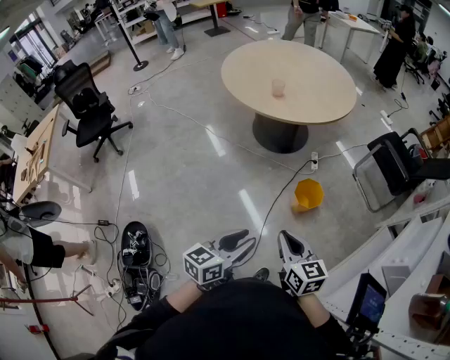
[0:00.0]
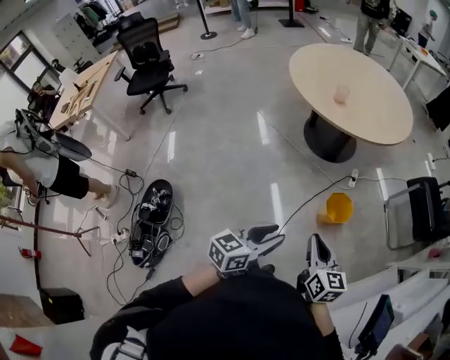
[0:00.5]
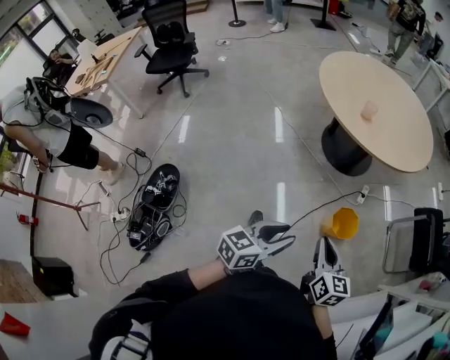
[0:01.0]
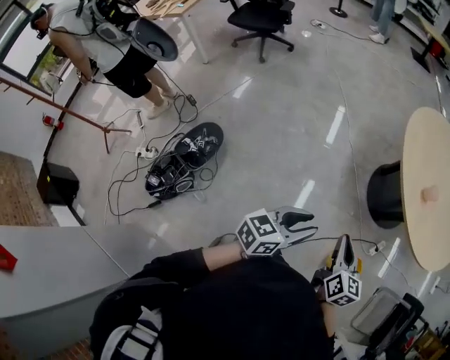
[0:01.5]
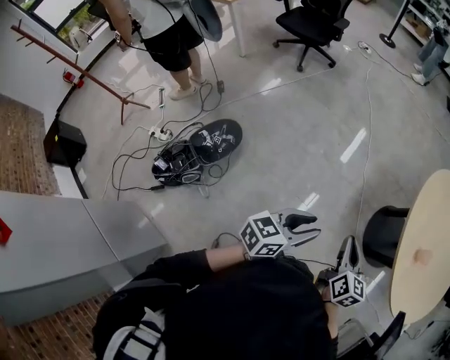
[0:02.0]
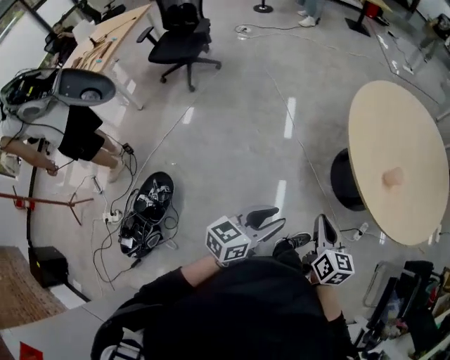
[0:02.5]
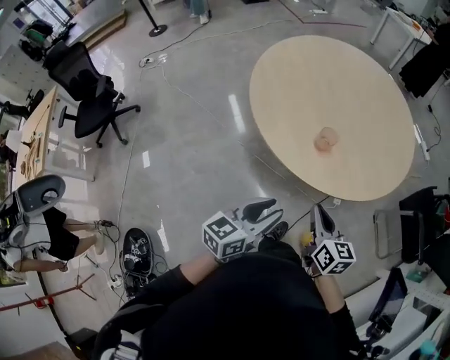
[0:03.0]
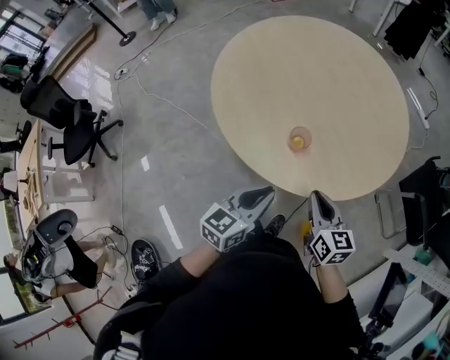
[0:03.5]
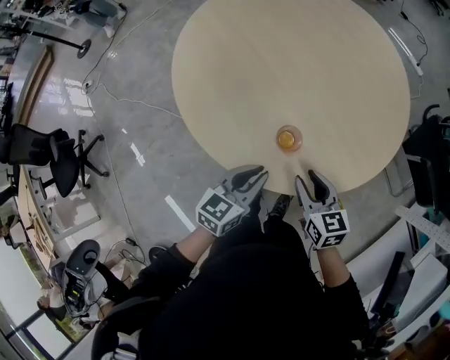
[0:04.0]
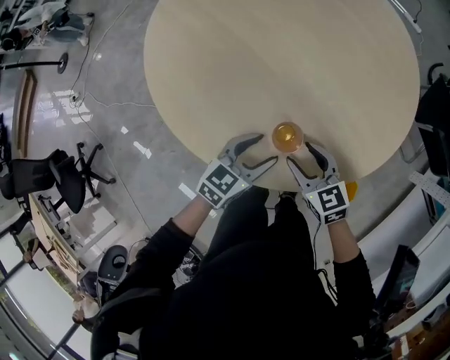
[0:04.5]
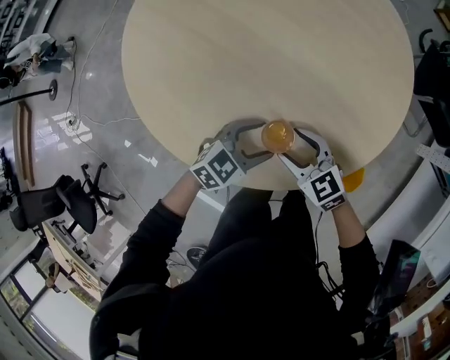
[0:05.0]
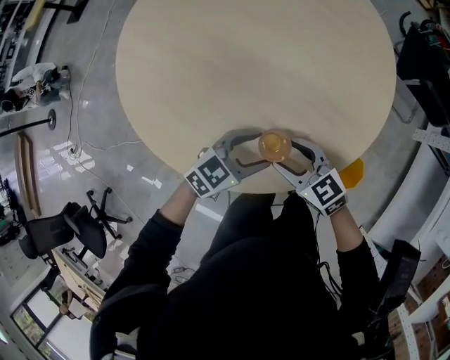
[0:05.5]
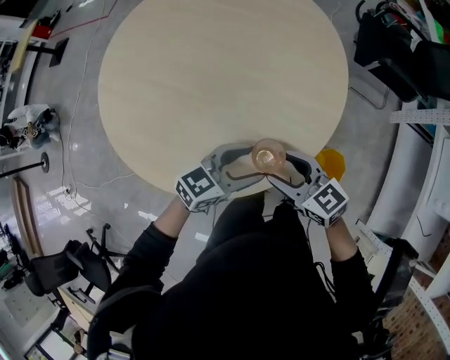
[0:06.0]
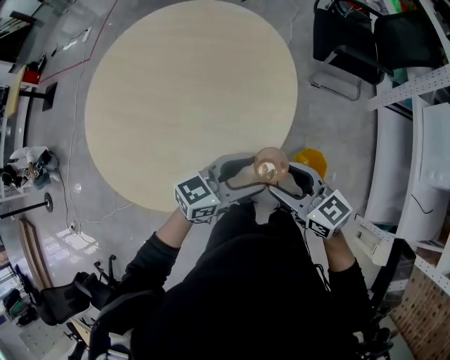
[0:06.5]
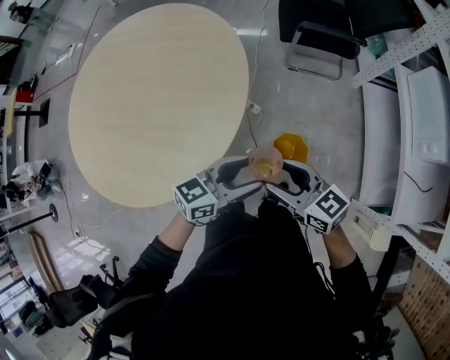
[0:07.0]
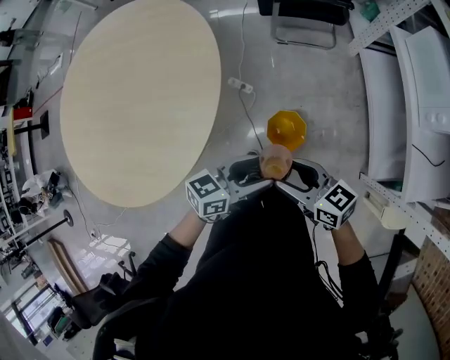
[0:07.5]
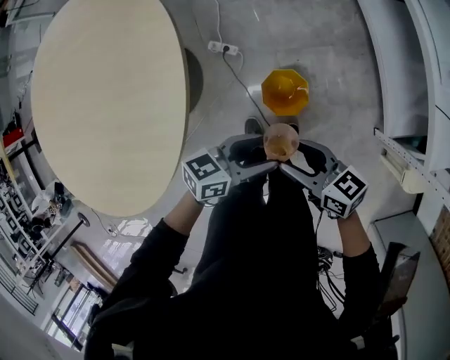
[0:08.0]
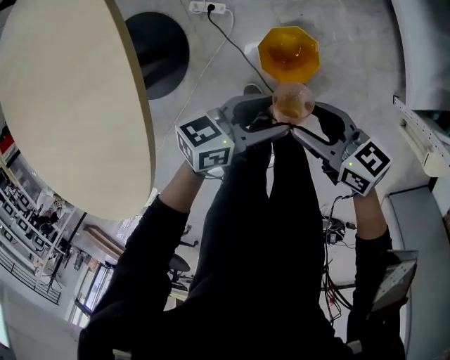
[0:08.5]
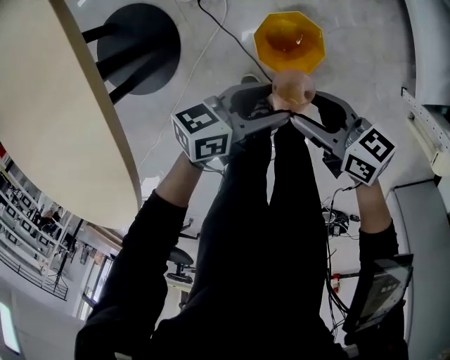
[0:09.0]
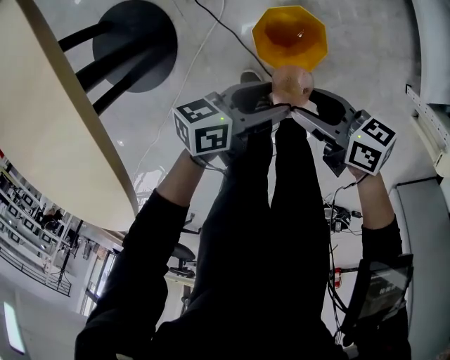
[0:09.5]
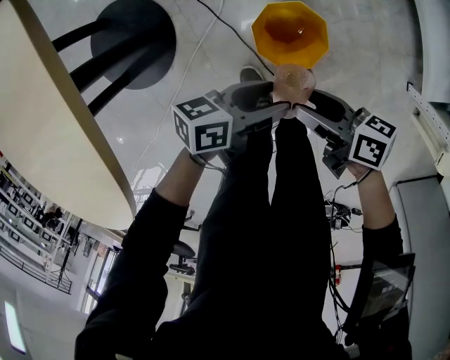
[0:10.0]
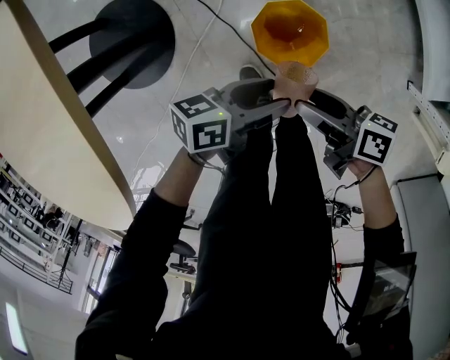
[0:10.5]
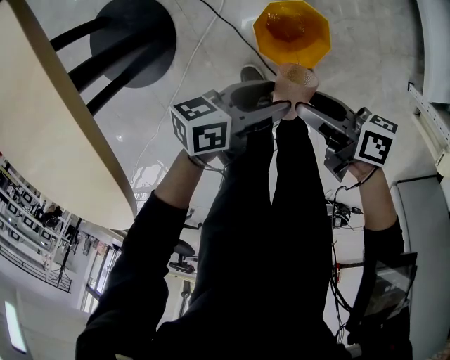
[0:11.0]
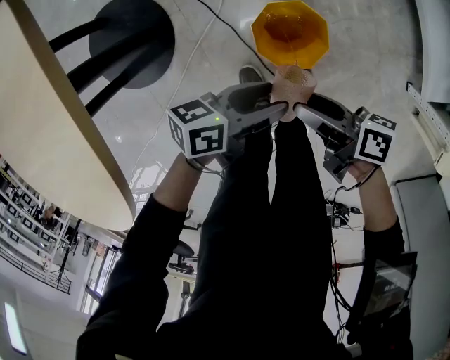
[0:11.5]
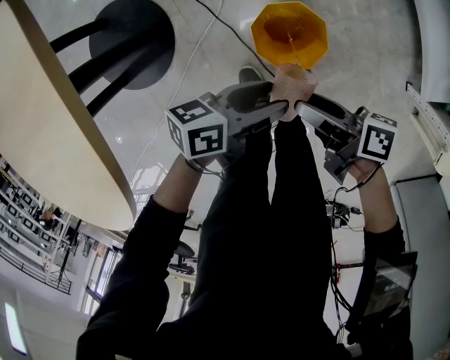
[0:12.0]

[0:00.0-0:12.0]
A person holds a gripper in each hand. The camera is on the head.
0:00.0 to 0:02.0: The two grippers travel together, about 40 cm. The left gripper rotates roughly 40 degrees. Meanwhile the right gripper turns by some 30 degrees.
0:02.0 to 0:04.0: The two grippers travel together, about 70 cm. The left gripper swivels about 60 degrees, and closes, while the right gripper rotates roughly 40 degrees, and opens.
0:04.0 to 0:06.0: The right gripper goes downward and returns, roughly 10 cm each way, and opens its fingers. Meanwhile the left gripper moves some 10 cm downward and comes back, rotates about 50 degrees, and opens up.
0:06.0 to 0:08.0: Both grippers are carried approximately 40 cm. The right gripper changes its angle by some 40 degrees; the left gripper turns by about 30 degrees.
0:08.0 to 0:10.0: Both grippers travel together downward, some 25 cm. The right gripper rotates about 30 degrees. The left gripper turns by roughly 20 degrees.
0:10.0 to 0:12.0: There are only small adjustments of the grippers.

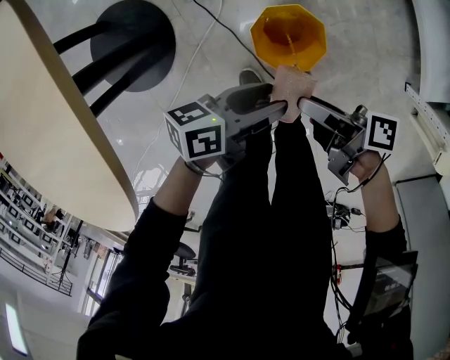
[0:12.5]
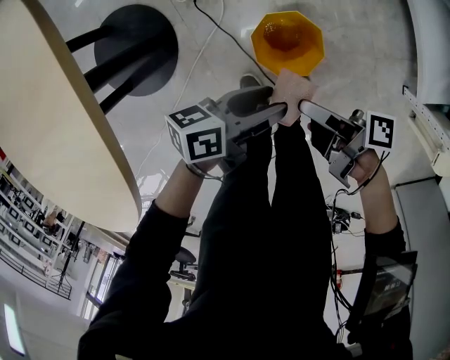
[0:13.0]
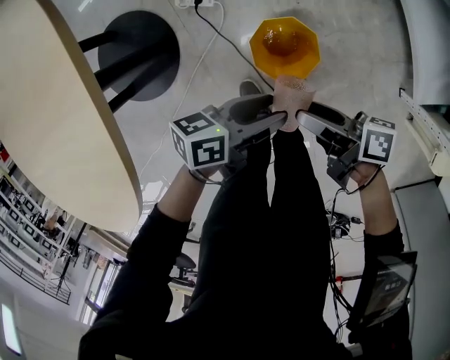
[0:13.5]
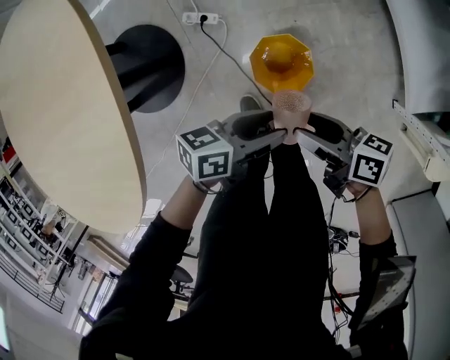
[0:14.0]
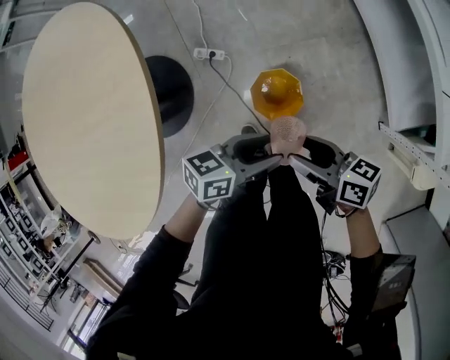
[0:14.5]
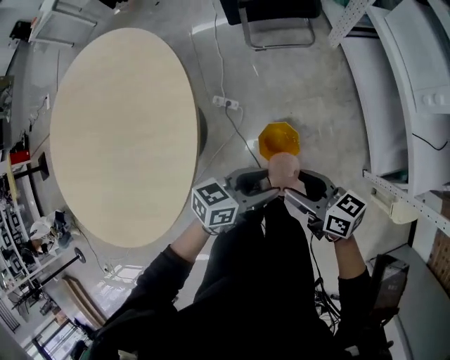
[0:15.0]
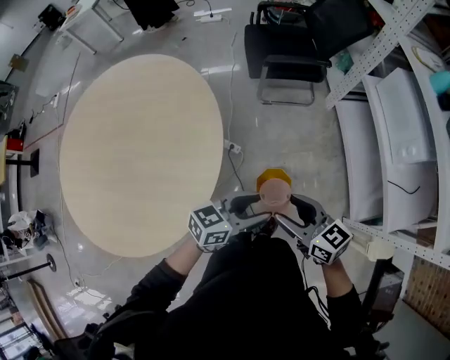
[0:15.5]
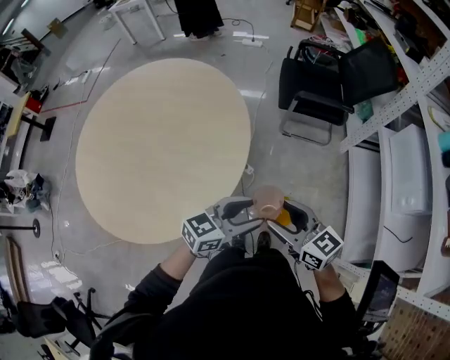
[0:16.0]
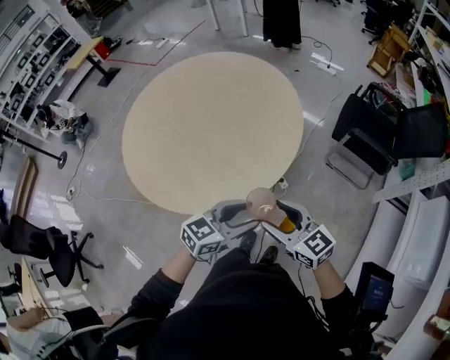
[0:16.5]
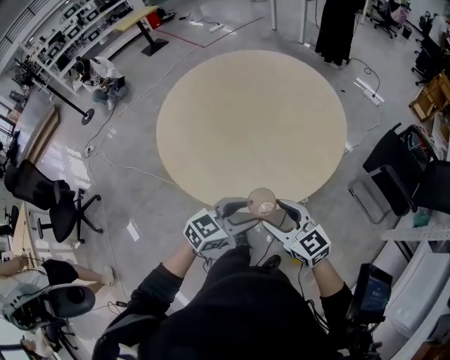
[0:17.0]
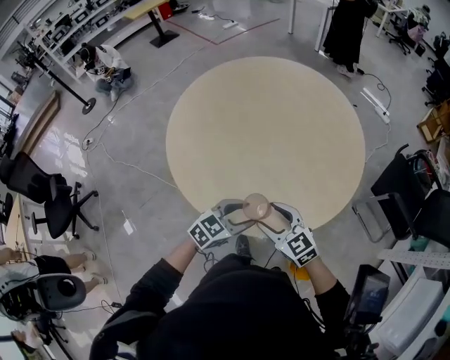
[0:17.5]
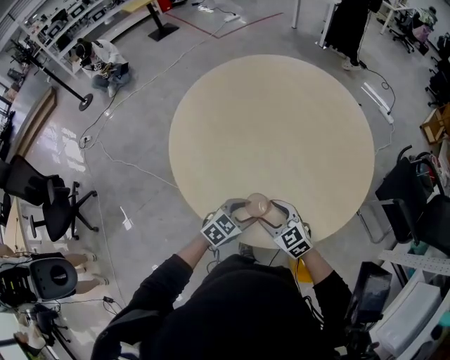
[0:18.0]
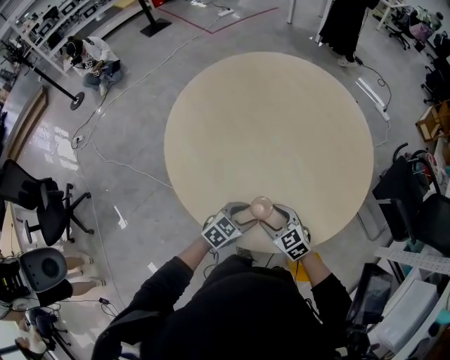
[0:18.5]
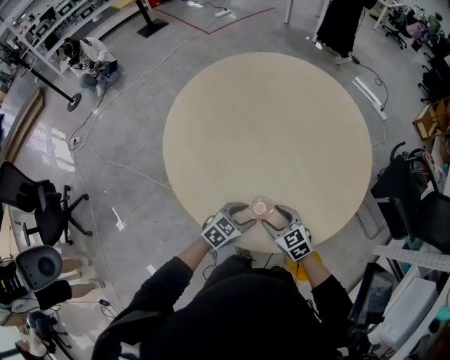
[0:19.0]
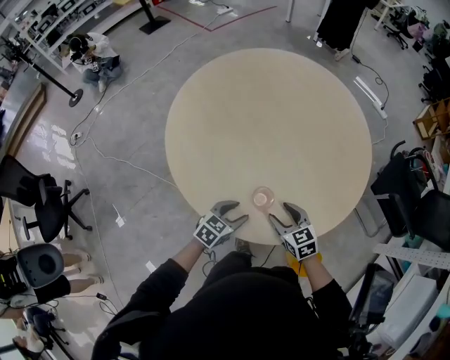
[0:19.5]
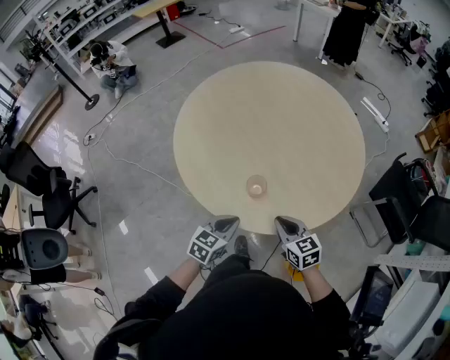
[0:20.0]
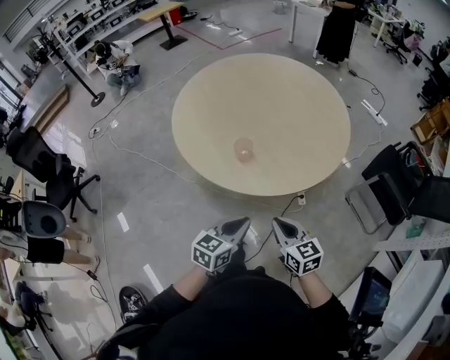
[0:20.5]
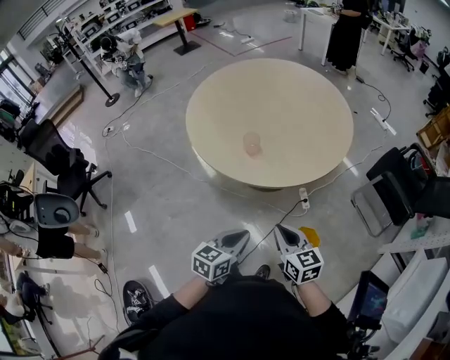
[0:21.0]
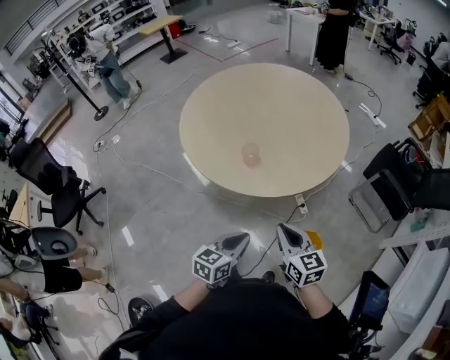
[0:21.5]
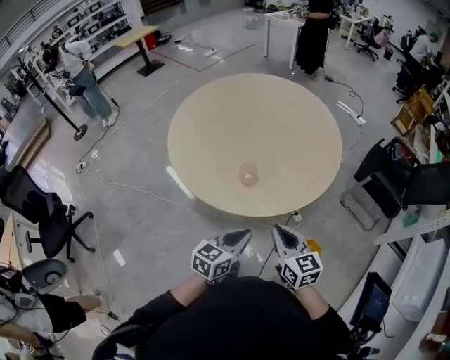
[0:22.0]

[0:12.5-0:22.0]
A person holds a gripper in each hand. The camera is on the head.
0:12.5 to 0:14.5: Both grippers move upward, about 15 cm. The right gripper twists approximately 40 degrees counterclockwise, seen from behind.
0:14.5 to 0:16.5: Both grippers travel together upward, about 35 cm. The left gripper turns by approximately 50 degrees; the right gripper rolls counterclockwise, seen from behind, by some 60 degrees.
0:16.5 to 0:18.0: Both grippers move to the left, forward and downward, some 40 cm. The right gripper swivels roughly 30 degrees; the left gripper rotates some 30 degrees.
0:18.0 to 0:20.0: The right gripper is displaced backward and to the right by about 10 cm, changes its angle by about 20 degrees, and closes. The left gripper shifts about 15 cm backward and upward, rotates approximately 20 degrees, and closes.
0:20.0 to 0:22.0: The grippers both shift backward and upward by about 20 cm.

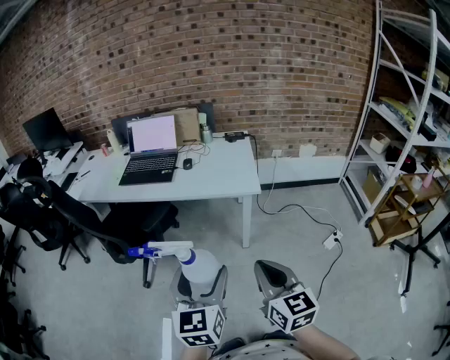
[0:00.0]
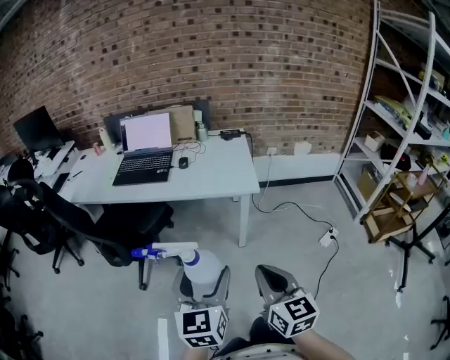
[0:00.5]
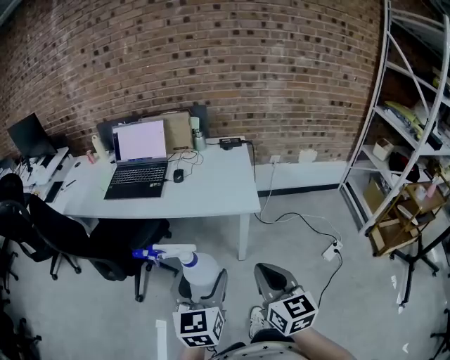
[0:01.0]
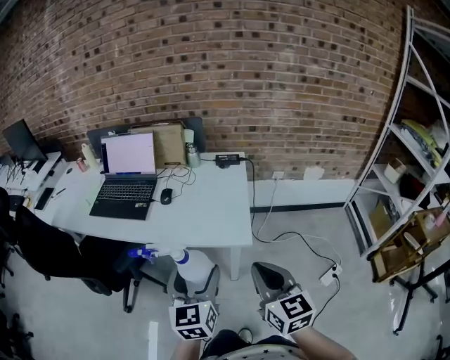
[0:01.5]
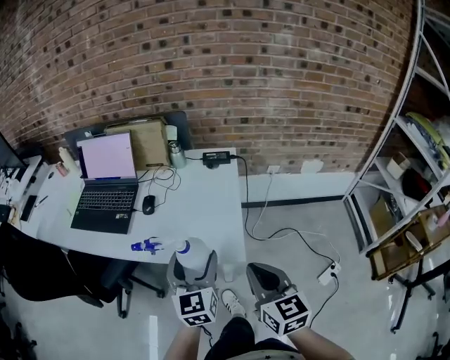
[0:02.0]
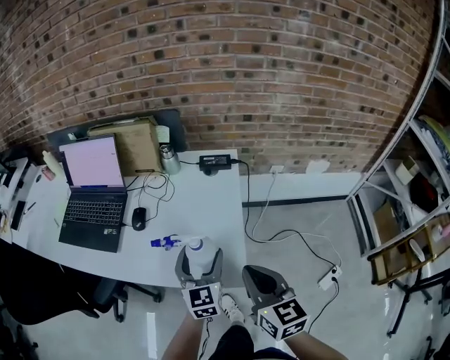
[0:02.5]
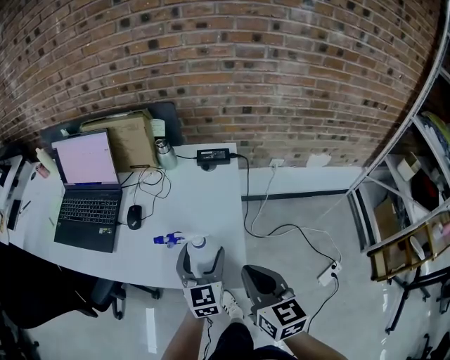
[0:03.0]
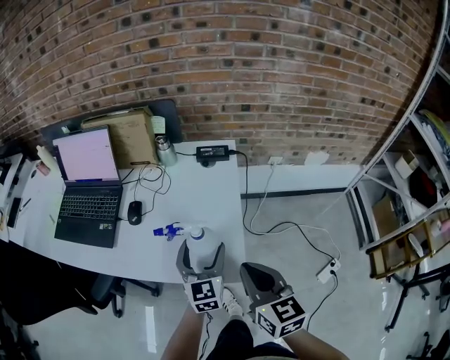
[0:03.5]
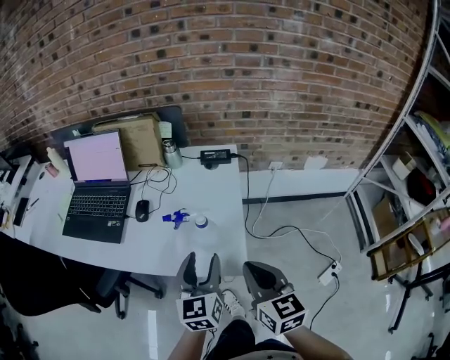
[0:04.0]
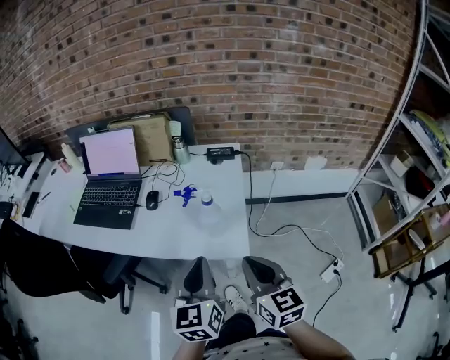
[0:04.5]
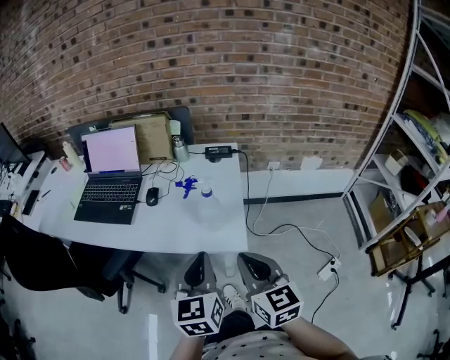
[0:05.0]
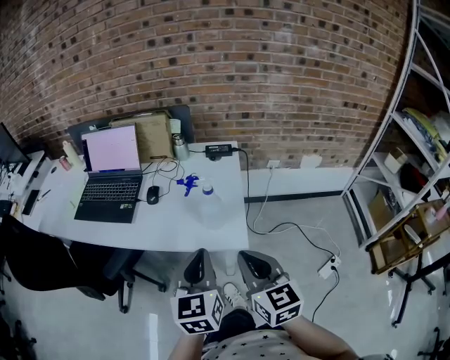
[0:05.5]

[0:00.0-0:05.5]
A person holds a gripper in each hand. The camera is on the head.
0:00.0 to 0:02.0: The two grippers travel together, forward and to the right, about 40 cm.
0:02.0 to 0:03.5: The right gripper travels forward by roughly 10 cm; the left gripper moves forward, downward and to the right, approximately 15 cm.
0:03.5 to 0:05.5: The right gripper is displaced backward and upward by approximately 15 cm. Meanwhile the left gripper is displaced backward and upward by about 25 cm, and closes up.
